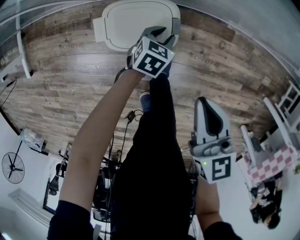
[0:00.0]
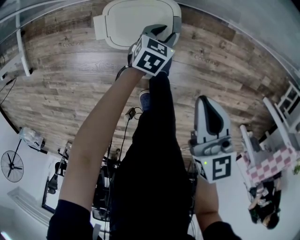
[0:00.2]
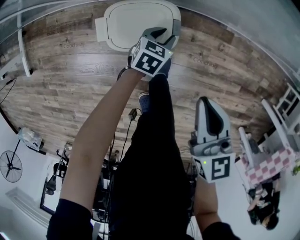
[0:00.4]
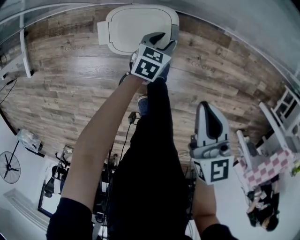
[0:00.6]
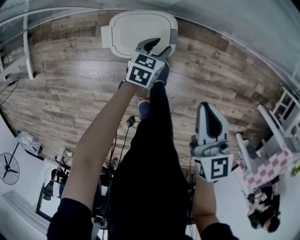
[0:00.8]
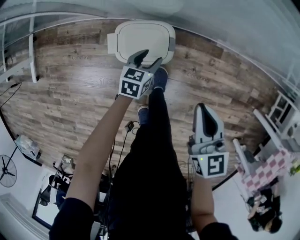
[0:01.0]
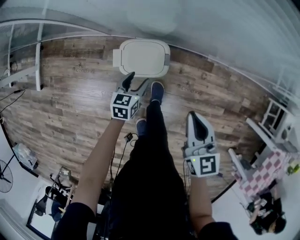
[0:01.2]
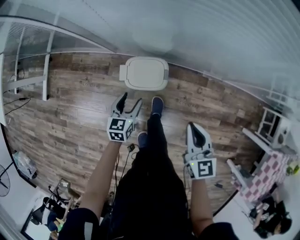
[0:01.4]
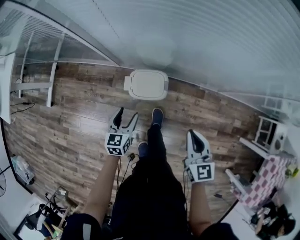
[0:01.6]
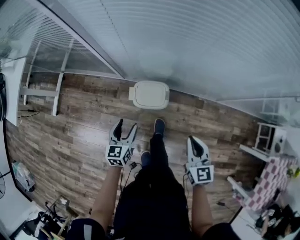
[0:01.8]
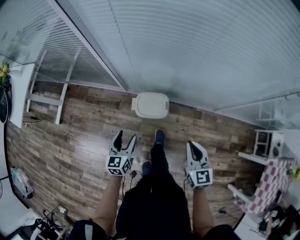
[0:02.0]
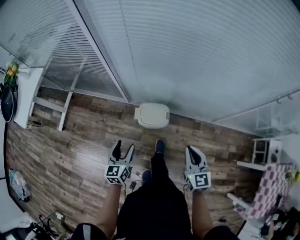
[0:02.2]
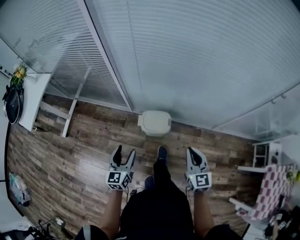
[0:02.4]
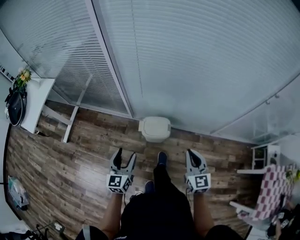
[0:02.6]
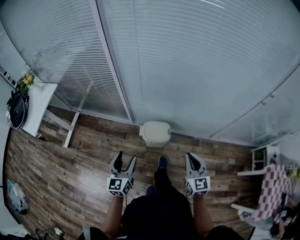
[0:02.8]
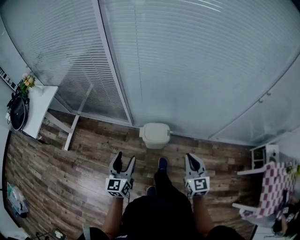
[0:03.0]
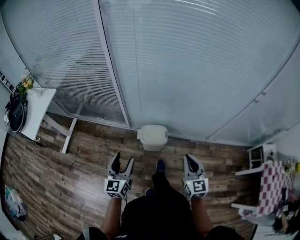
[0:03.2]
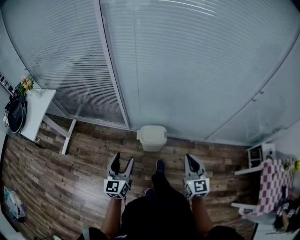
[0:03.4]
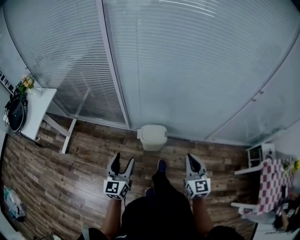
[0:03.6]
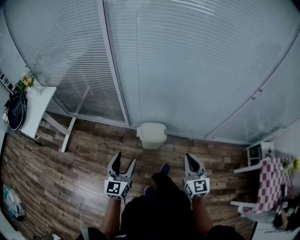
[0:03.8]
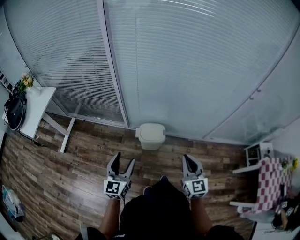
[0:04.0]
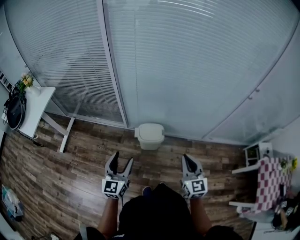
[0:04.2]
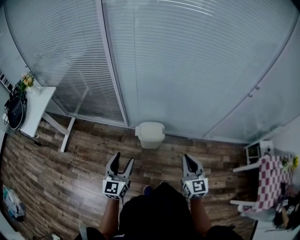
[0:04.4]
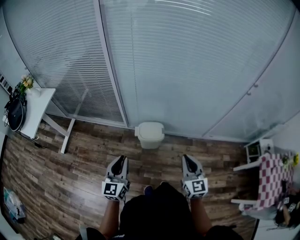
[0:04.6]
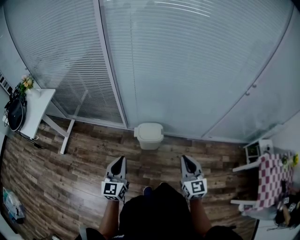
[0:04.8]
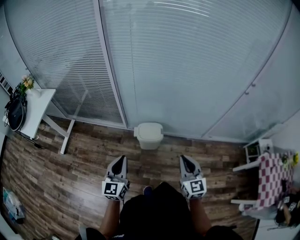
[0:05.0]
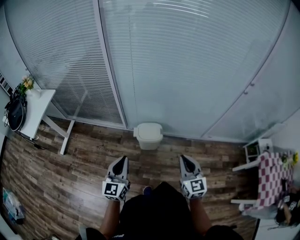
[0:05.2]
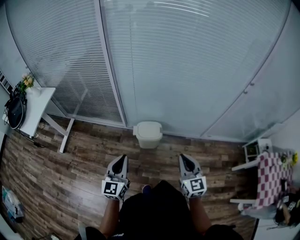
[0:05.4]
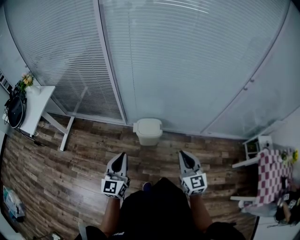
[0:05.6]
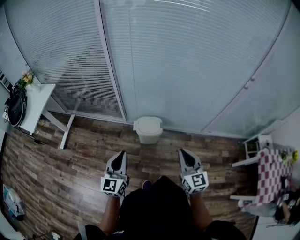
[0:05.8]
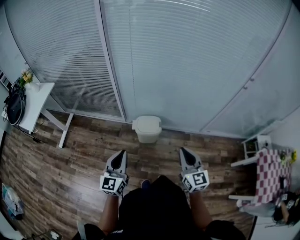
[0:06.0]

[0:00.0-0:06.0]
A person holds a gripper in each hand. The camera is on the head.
0.0 to 1.6 s: The left gripper heads upward, to the left and backward, covering roughly 35 cm, changes its angle by some 40 degrees, and opens, while the right gripper heads upward, covering about 15 cm.
1.6 to 3.0 s: The left gripper heads upward and backward, covering some 30 cm, and swivels some 30 degrees, while the right gripper moves upward and backward, approximately 15 cm.
3.0 to 4.4 s: The two grippers go roughly 5 cm backward.
4.4 to 6.0 s: The left gripper closes up.

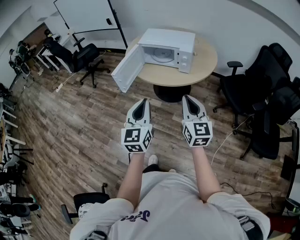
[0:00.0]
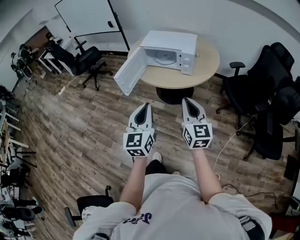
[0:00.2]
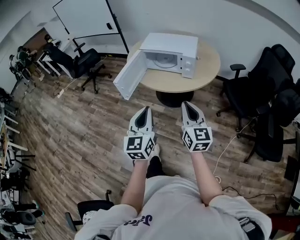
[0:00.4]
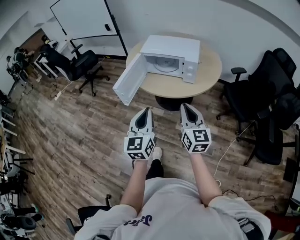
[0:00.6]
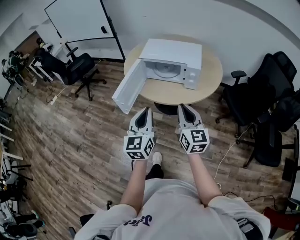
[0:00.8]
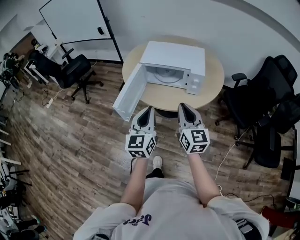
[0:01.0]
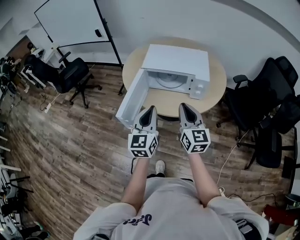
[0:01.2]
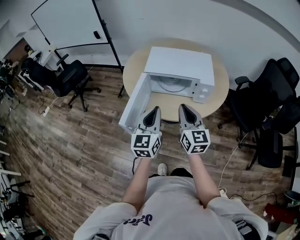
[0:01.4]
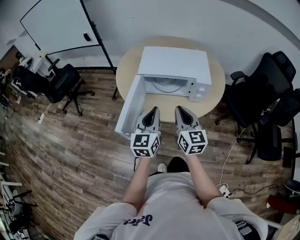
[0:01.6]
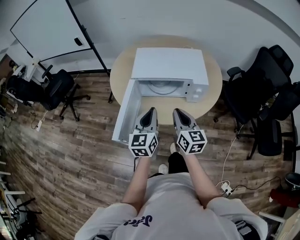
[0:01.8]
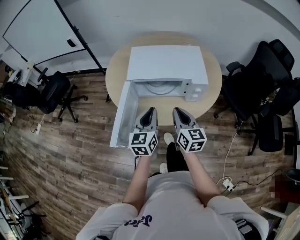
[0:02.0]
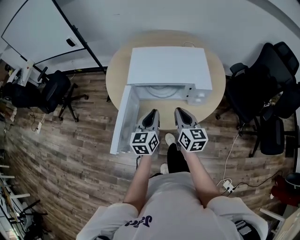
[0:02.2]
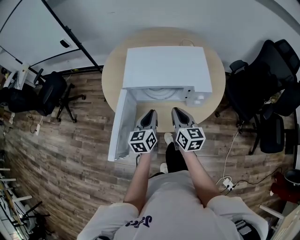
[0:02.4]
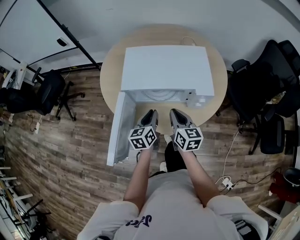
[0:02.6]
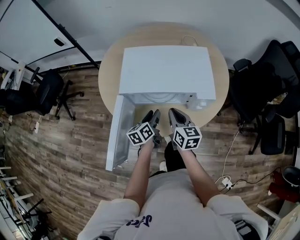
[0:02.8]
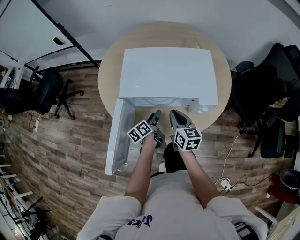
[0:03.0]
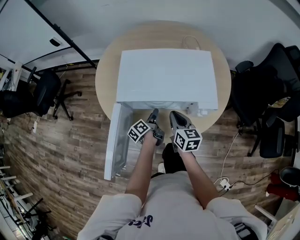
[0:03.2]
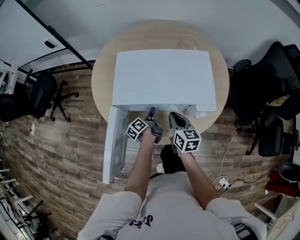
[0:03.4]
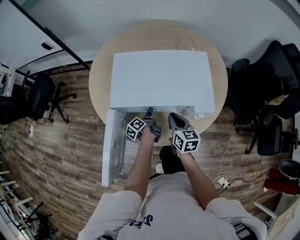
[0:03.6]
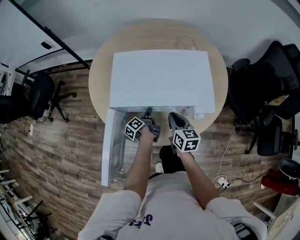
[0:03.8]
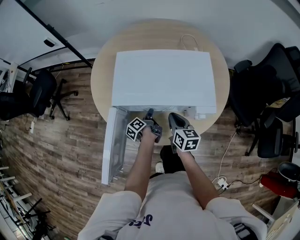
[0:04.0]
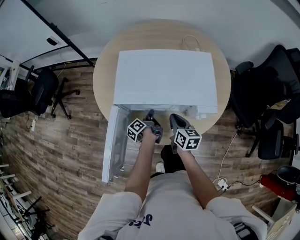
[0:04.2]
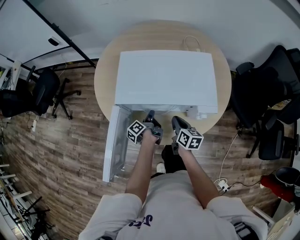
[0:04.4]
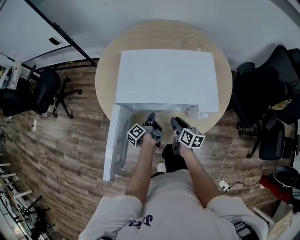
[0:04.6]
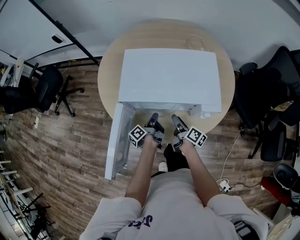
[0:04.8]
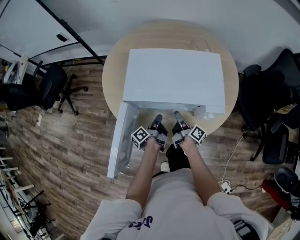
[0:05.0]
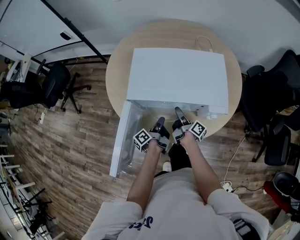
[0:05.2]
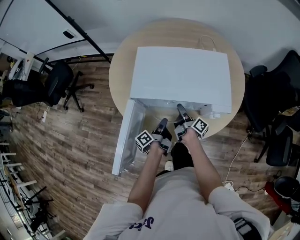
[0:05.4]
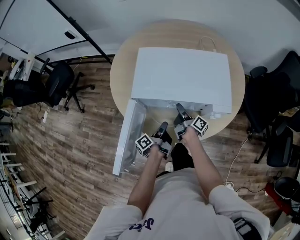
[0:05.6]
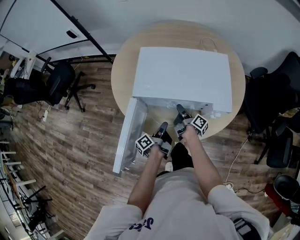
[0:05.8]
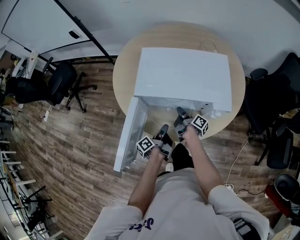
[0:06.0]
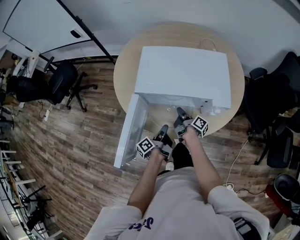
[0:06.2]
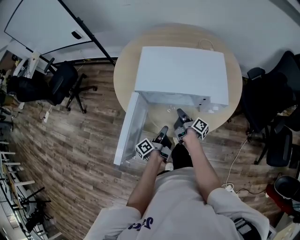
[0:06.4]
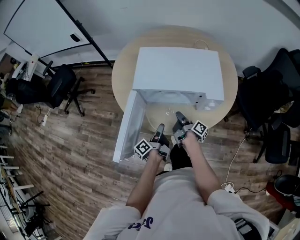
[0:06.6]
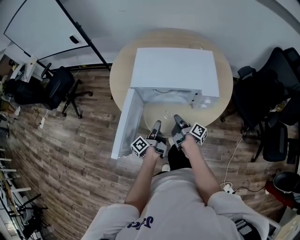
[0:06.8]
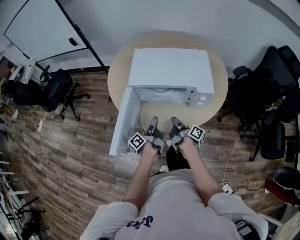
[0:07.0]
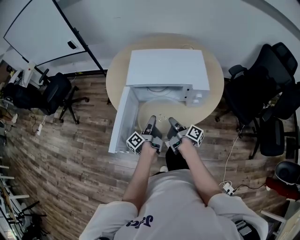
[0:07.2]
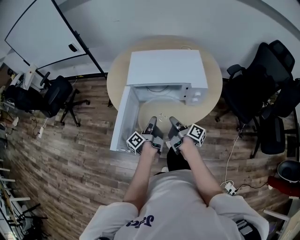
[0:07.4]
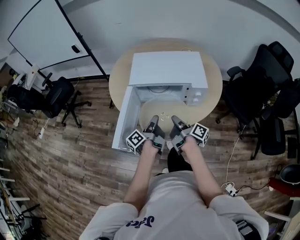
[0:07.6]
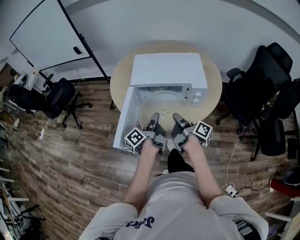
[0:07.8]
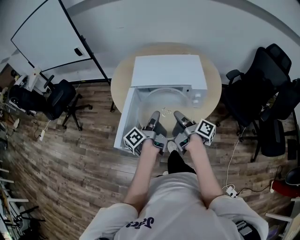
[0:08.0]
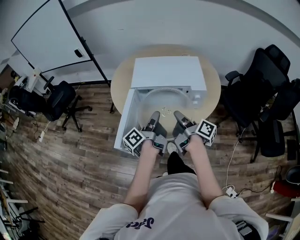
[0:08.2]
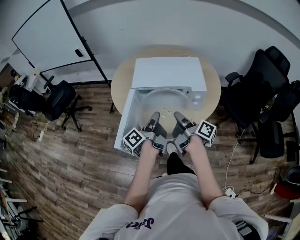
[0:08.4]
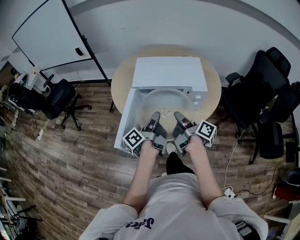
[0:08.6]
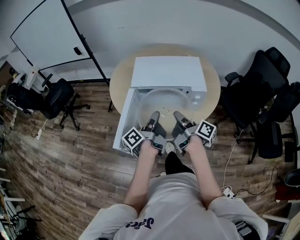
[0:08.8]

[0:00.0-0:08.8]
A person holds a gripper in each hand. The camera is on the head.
0.0 to 1.4 s: The left gripper moves forward, roughly 30 cm. The right gripper goes about 30 cm forward and to the left.
1.4 to 3.0 s: The left gripper heads downward and forward, covering roughly 40 cm, twists approximately 60 degrees counterclockwise, seen from behind, and opens its fingers. Meanwhile the right gripper heads forward and downward, covering approximately 30 cm, and changes its angle by approximately 30 degrees.
3.0 to 4.4 s: The left gripper rotates roughly 30 degrees, and closes its fingers. Meanwhile the right gripper moves downward, roughly 10 cm.
4.4 to 5.8 s: The left gripper is displaced backward by about 10 cm, while the right gripper travels forward by approximately 5 cm, rolls clockwise, seen from behind, by some 50 degrees, and opens, then closes again.
5.8 to 7.4 s: The right gripper goes some 20 cm backward and upward; the left gripper moves upward and backward, about 15 cm, and opens, then closes once more.
7.4 to 8.8 s: Both grippers travel together upward, some 15 cm.

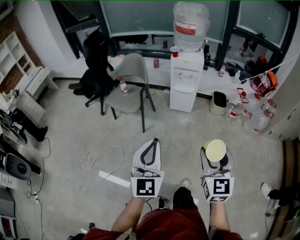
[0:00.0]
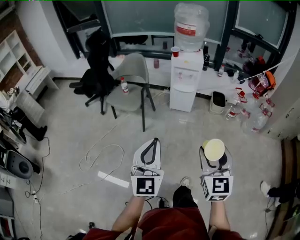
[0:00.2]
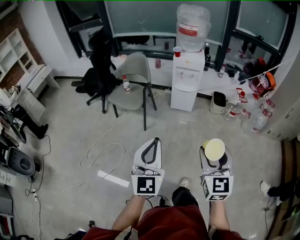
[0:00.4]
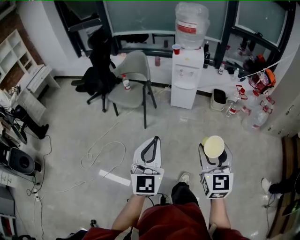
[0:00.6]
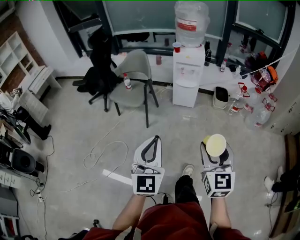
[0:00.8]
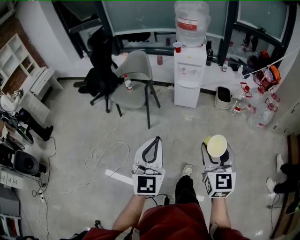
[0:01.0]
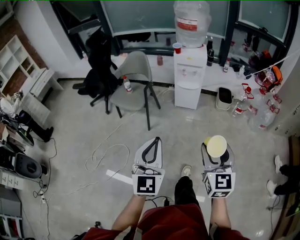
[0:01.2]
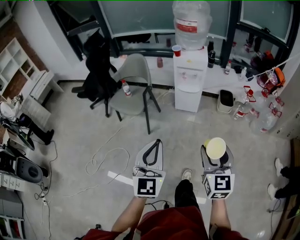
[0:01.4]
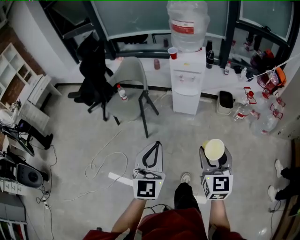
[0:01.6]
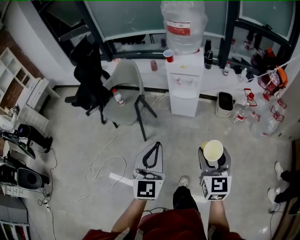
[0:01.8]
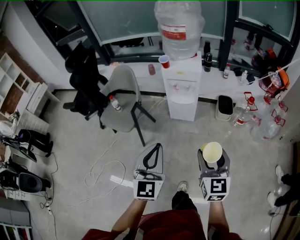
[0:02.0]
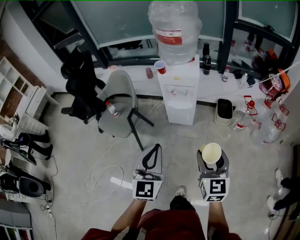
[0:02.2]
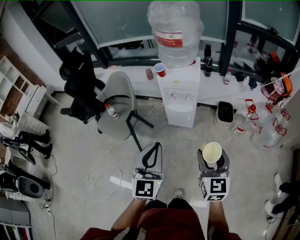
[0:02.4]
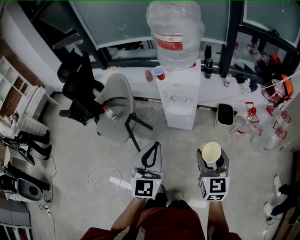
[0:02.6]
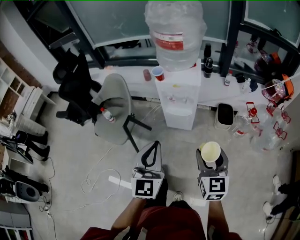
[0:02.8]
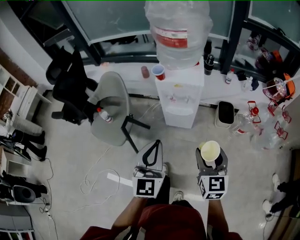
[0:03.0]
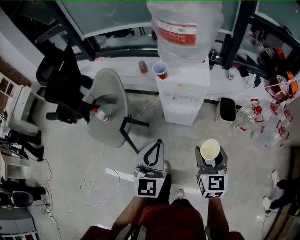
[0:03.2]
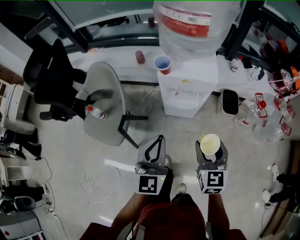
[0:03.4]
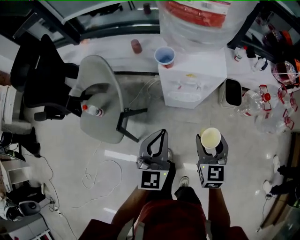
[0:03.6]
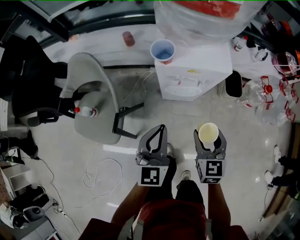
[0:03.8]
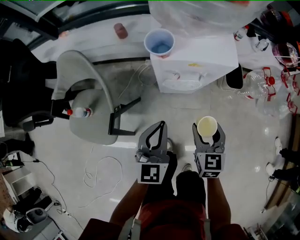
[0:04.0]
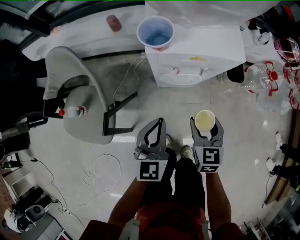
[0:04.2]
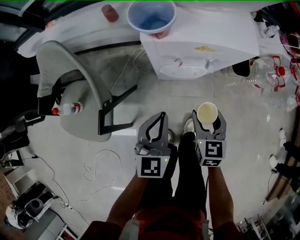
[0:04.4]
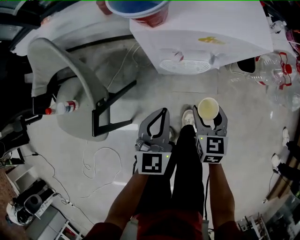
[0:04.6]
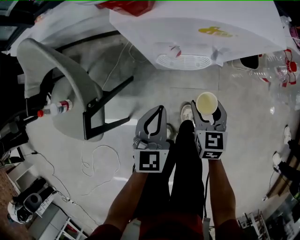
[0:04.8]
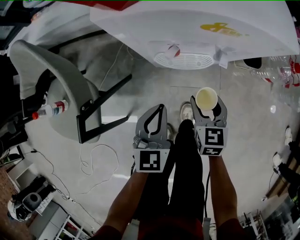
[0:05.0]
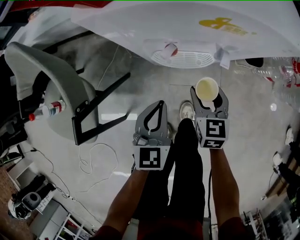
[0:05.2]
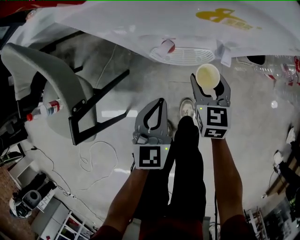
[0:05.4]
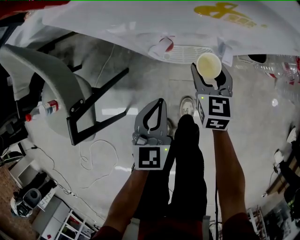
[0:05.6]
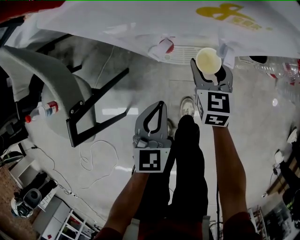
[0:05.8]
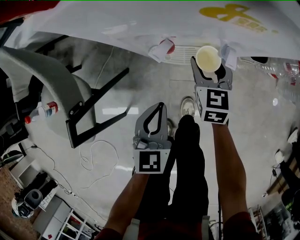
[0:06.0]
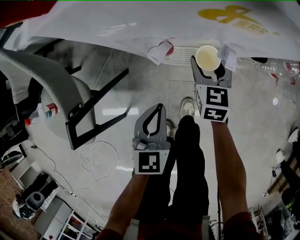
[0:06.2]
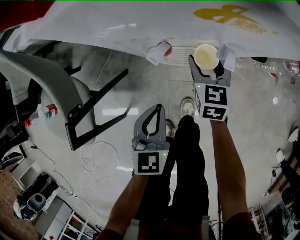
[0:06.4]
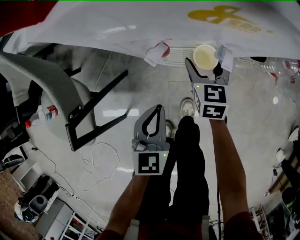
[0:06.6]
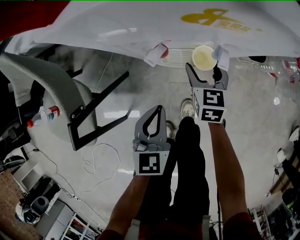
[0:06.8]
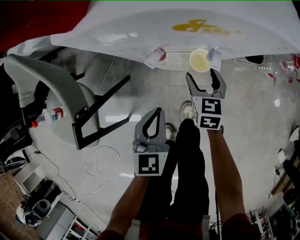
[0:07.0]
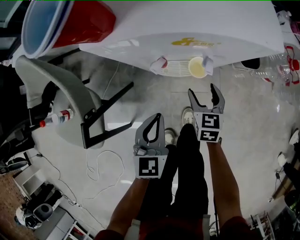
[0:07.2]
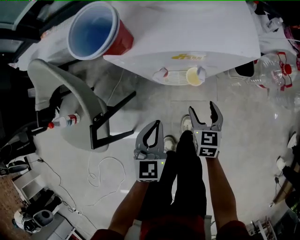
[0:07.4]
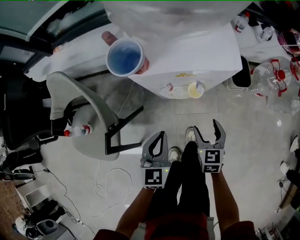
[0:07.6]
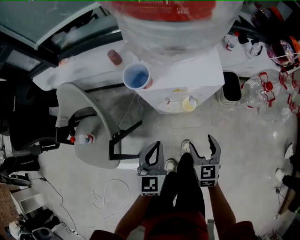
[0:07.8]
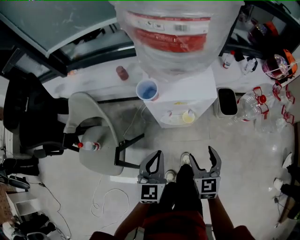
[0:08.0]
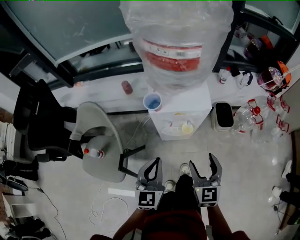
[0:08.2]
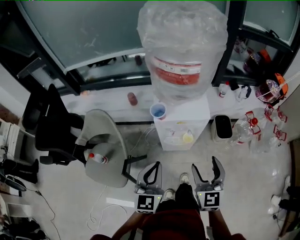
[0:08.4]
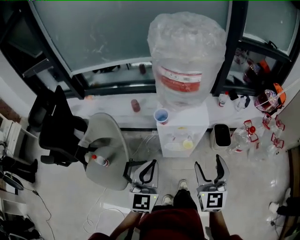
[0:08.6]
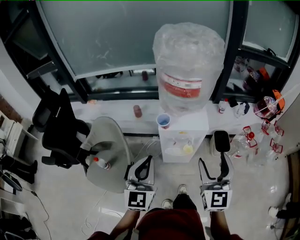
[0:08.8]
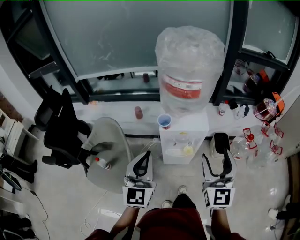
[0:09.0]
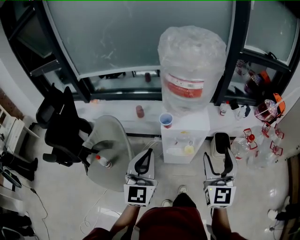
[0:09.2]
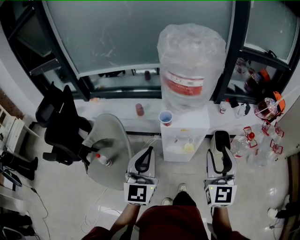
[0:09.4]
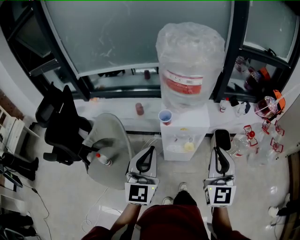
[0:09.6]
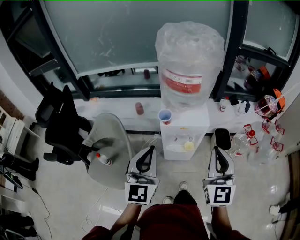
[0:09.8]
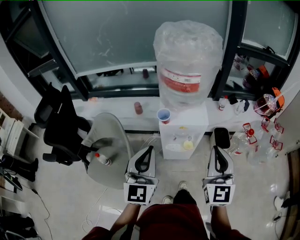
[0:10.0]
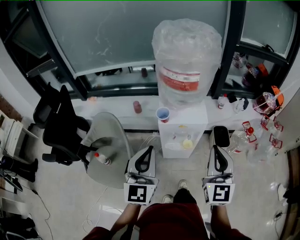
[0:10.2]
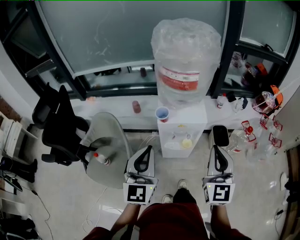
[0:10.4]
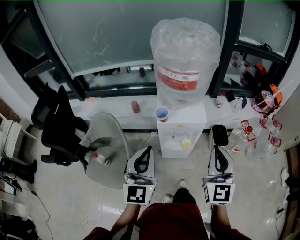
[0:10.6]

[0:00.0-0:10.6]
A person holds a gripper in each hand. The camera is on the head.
0.0 to 1.6 s: The grippers both shift forward by some 10 cm.
1.6 to 3.0 s: Both grippers move forward, some 35 cm.
3.0 to 4.6 s: The grippers both shift downward and forward by some 40 cm. The right gripper turns by some 20 degrees. The left gripper rotates roughly 30 degrees.
4.6 to 6.0 s: The left gripper heads downward, covering some 10 cm; the right gripper is displaced forward and downward by about 20 cm.
6.0 to 7.6 s: The left gripper is displaced upward by about 10 cm. Meanwhile the right gripper travels backward and upward by about 15 cm.
7.6 to 9.0 s: The grippers both shift upward by about 40 cm. The left gripper turns by some 30 degrees, while the right gripper angles its fingers upward, by some 40 degrees.
9.0 to 10.6 s: The right gripper closes.
